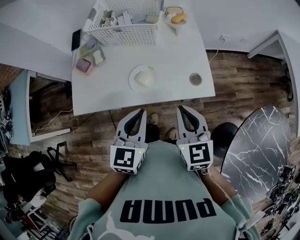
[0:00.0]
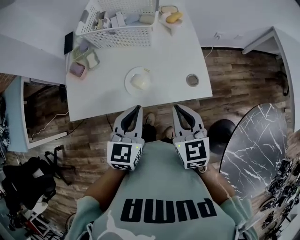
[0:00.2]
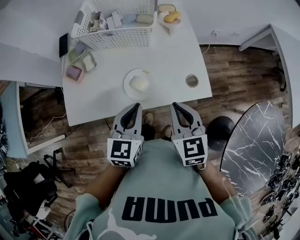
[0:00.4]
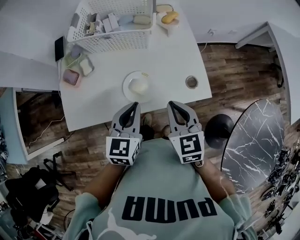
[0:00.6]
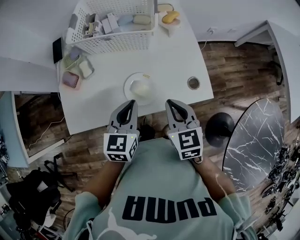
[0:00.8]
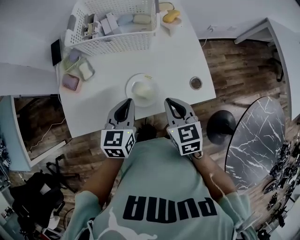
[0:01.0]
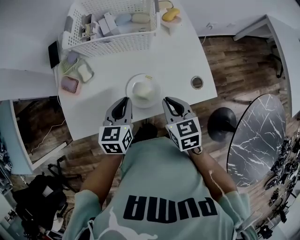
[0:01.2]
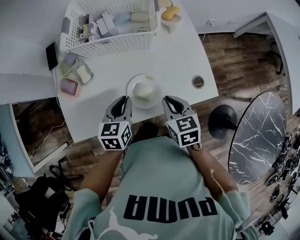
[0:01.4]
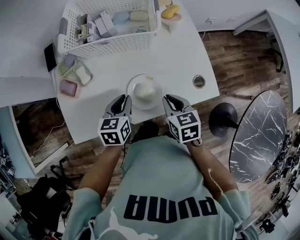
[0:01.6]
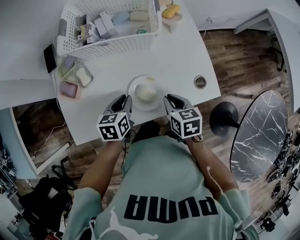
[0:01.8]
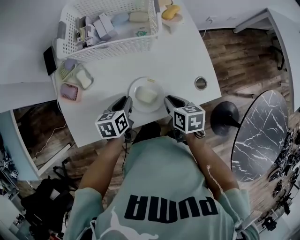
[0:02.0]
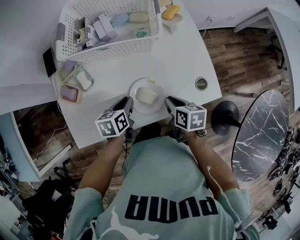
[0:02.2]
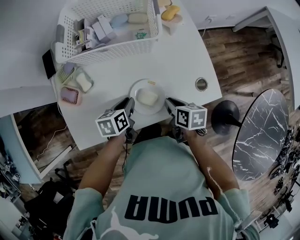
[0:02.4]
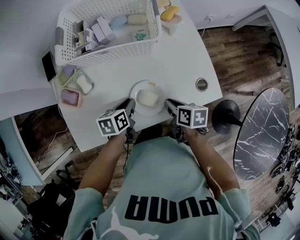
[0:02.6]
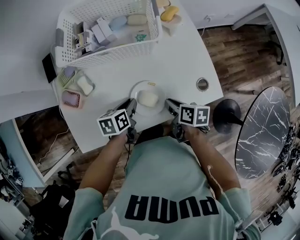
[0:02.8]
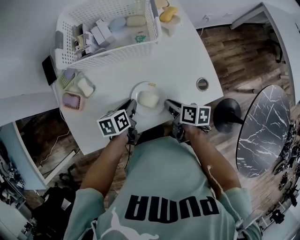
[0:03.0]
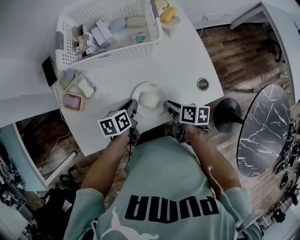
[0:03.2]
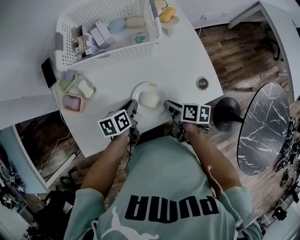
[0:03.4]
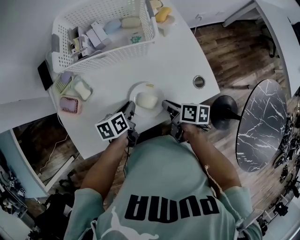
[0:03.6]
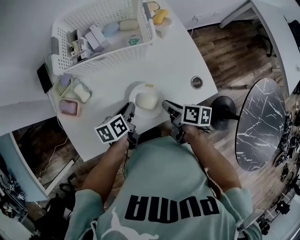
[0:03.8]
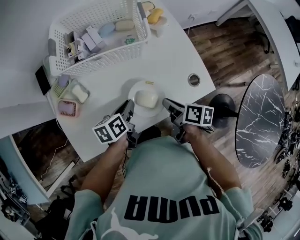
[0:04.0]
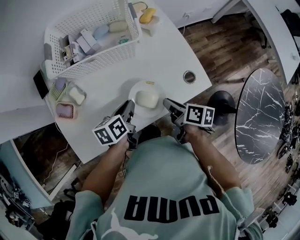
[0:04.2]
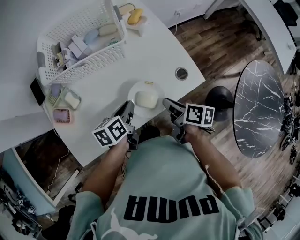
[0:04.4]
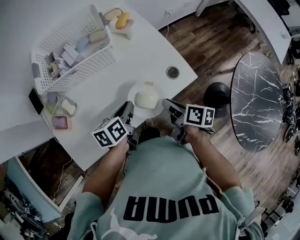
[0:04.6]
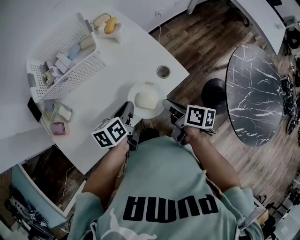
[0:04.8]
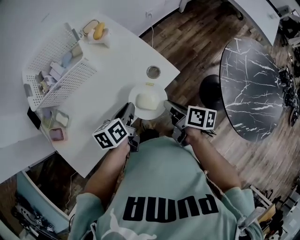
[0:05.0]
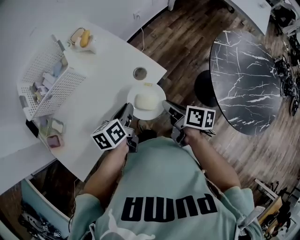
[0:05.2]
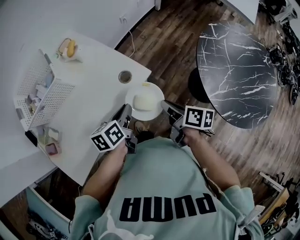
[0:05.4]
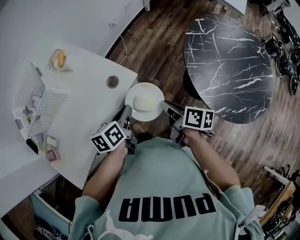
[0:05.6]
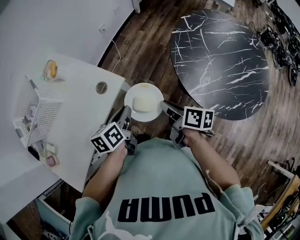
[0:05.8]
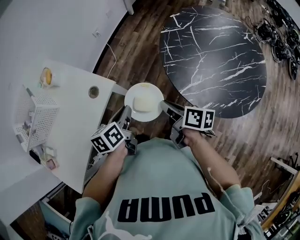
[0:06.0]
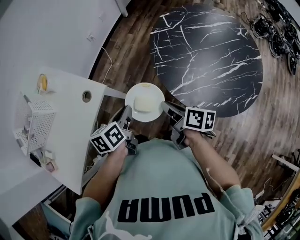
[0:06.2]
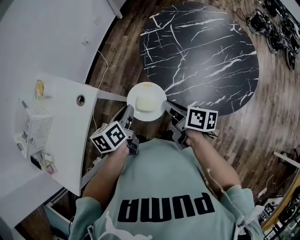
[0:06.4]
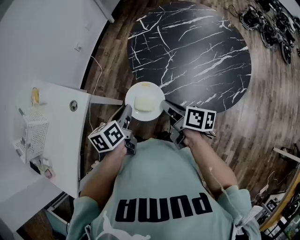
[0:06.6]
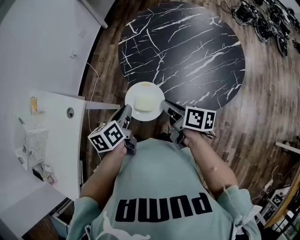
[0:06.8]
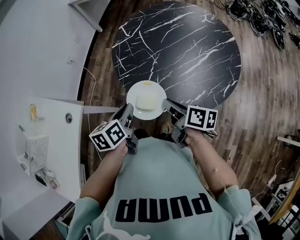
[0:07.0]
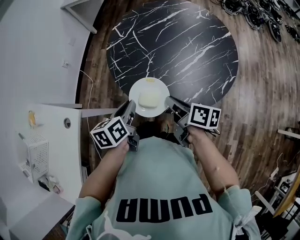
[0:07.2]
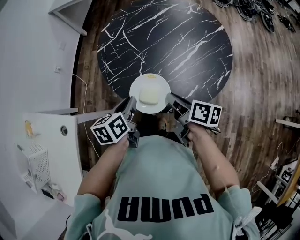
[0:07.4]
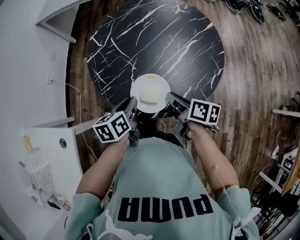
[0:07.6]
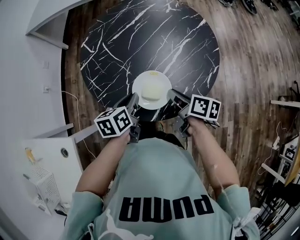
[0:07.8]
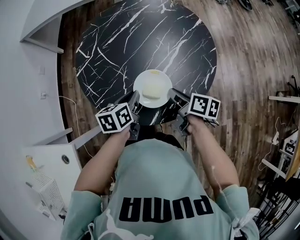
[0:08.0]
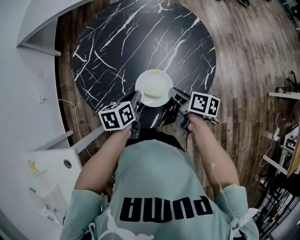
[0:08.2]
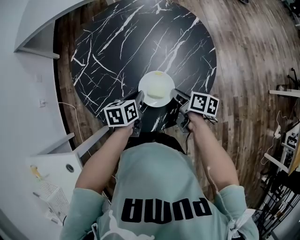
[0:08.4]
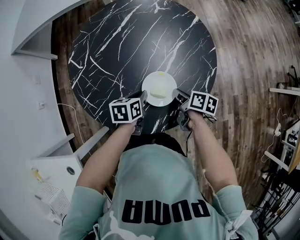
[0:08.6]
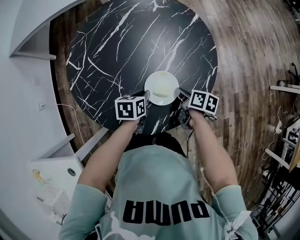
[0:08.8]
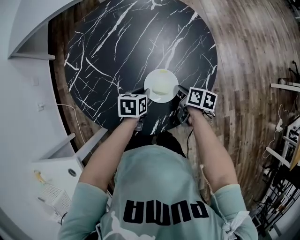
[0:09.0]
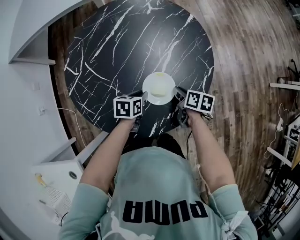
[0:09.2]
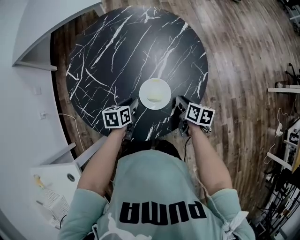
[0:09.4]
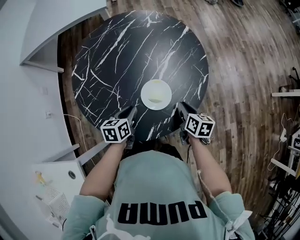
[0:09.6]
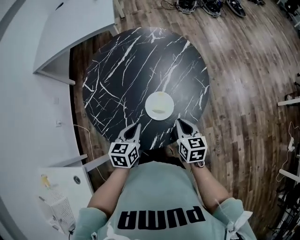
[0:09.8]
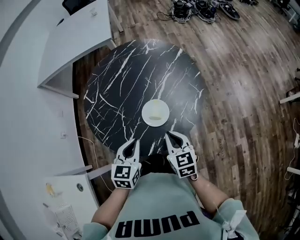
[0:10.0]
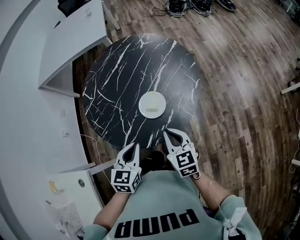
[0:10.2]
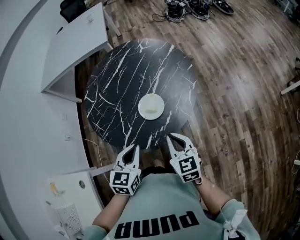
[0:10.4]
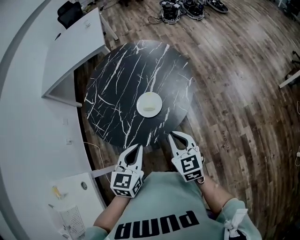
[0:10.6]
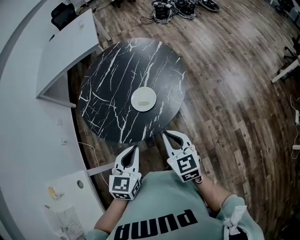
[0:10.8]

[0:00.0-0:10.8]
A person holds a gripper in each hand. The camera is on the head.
0.0 to 1.6 s: The right gripper heads downward, forward and to the left, covering approximately 20 cm, and swivels about 30 degrees. The left gripper travels forward, downward and to the left by about 25 cm, and rotates about 20 degrees.
1.6 to 3.0 s: The grippers both shift downward by approximately 5 cm. The right gripper swivels roughly 40 degrees, while the left gripper turns by some 30 degrees.
3.0 to 4.6 s: The grippers both shift to the right and upward by roughly 10 cm. The right gripper changes its angle by about 20 degrees.
4.6 to 6.2 s: The two grippers travel together, some 40 cm. The right gripper turns by roughly 30 degrees. Meanwhile the left gripper swivels approximately 30 degrees.
6.2 to 7.8 s: The left gripper shifts by some 35 cm, and swivels roughly 40 degrees; the right gripper ends up about 30 cm from where it was, and turns by some 30 degrees.
7.8 to 9.2 s: The right gripper moves downward, to the right and forward, about 15 cm. Meanwhile the left gripper is displaced downward, forward and to the right by approximately 20 cm, and changes its angle by some 30 degrees.
9.2 to 10.8 s: Both grippers travel together backward and upward, roughly 35 cm. The right gripper twists some 50 degrees counterclockwise, seen from behind, while the left gripper turns by roughly 40 degrees, and closes up.

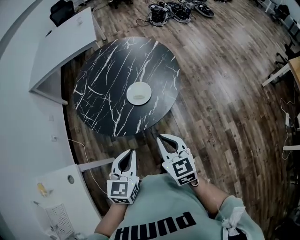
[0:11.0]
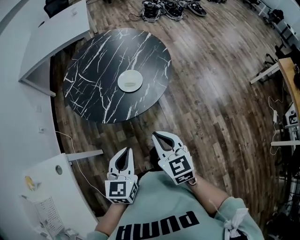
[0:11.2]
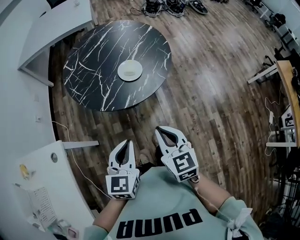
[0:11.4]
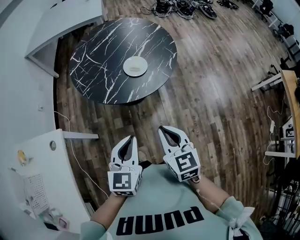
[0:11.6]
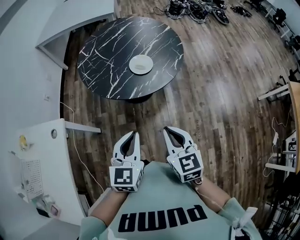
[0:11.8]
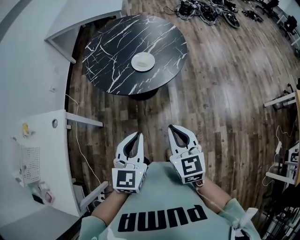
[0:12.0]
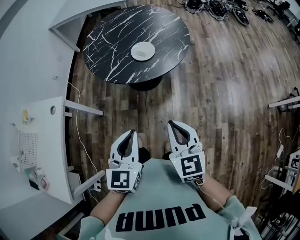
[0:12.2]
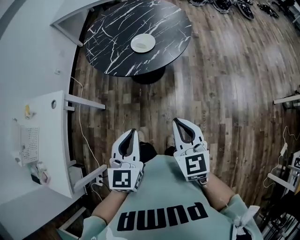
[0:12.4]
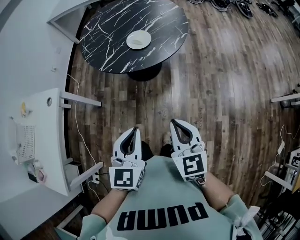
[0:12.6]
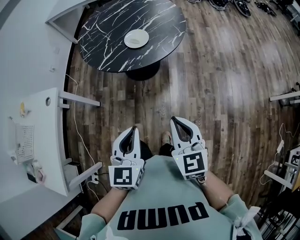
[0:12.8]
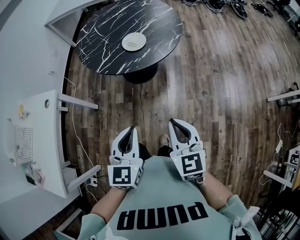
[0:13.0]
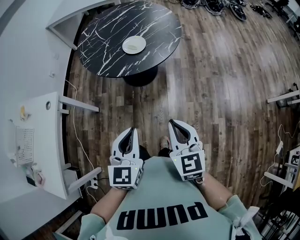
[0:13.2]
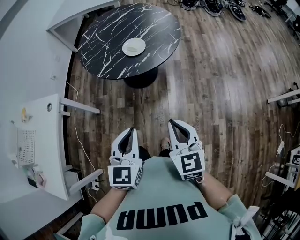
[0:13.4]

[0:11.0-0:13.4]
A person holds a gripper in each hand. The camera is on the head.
11.0 to 12.2 s: Both grippers travel together backward and to the right, approximately 20 cm. The left gripper turns by roughly 20 degrees.
12.2 to 13.4 s: The right gripper is displaced to the right by about 5 cm. Meanwhile the left gripper ends up about 5 cm from where it was.

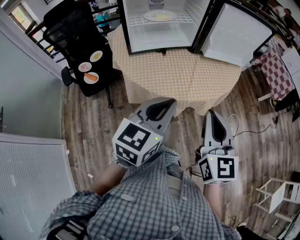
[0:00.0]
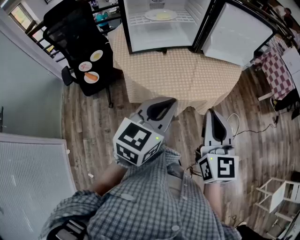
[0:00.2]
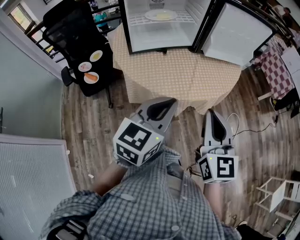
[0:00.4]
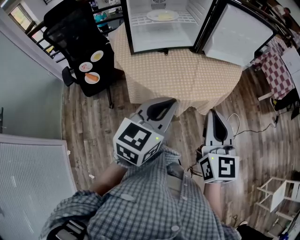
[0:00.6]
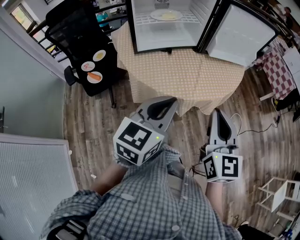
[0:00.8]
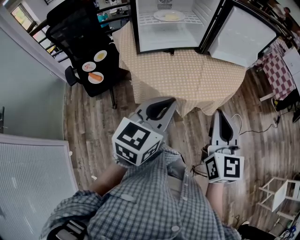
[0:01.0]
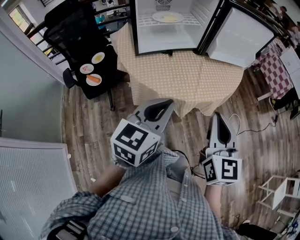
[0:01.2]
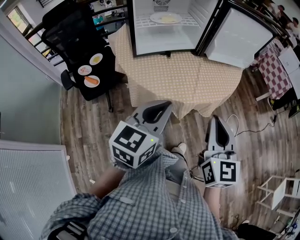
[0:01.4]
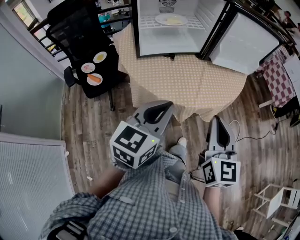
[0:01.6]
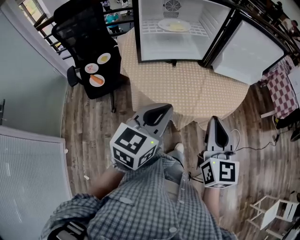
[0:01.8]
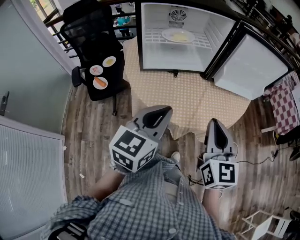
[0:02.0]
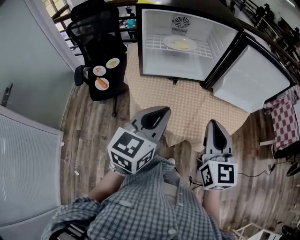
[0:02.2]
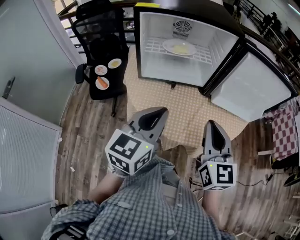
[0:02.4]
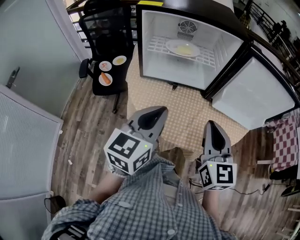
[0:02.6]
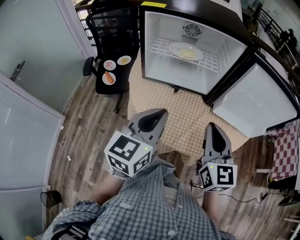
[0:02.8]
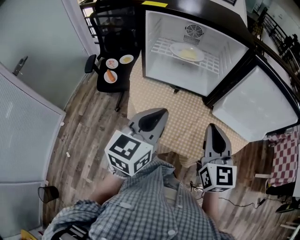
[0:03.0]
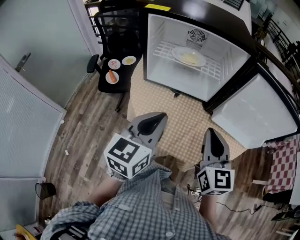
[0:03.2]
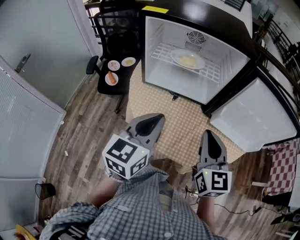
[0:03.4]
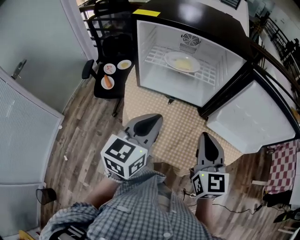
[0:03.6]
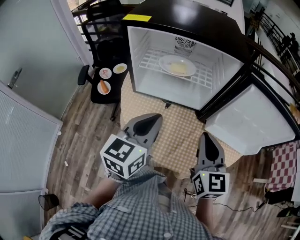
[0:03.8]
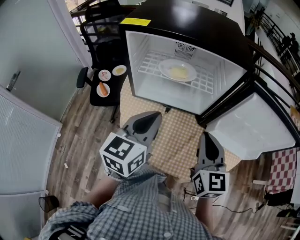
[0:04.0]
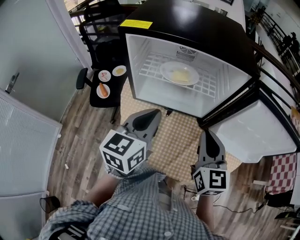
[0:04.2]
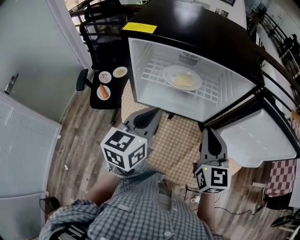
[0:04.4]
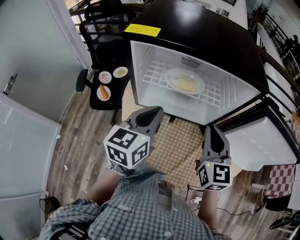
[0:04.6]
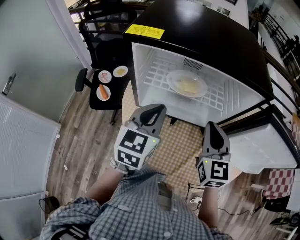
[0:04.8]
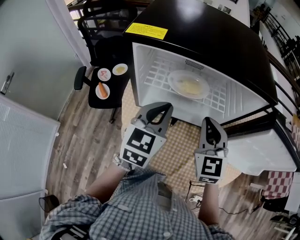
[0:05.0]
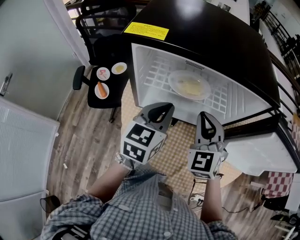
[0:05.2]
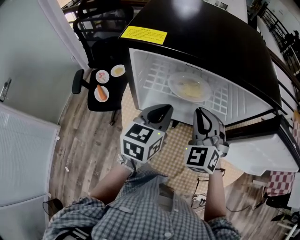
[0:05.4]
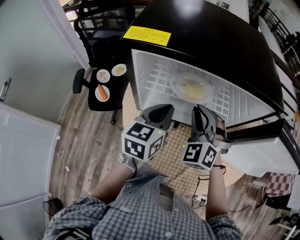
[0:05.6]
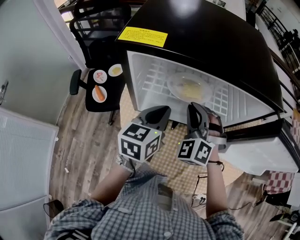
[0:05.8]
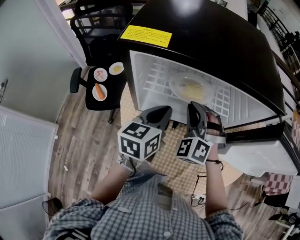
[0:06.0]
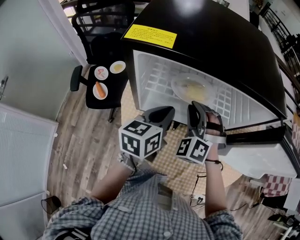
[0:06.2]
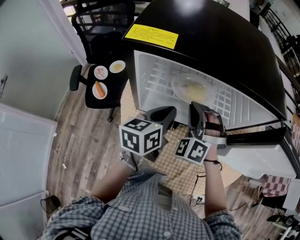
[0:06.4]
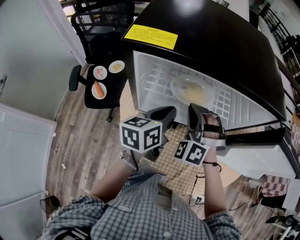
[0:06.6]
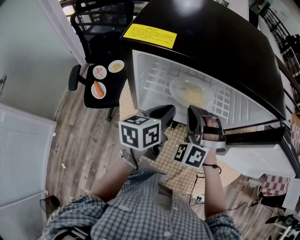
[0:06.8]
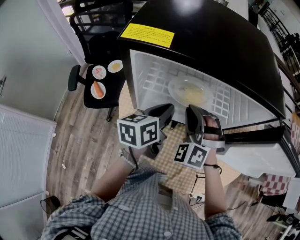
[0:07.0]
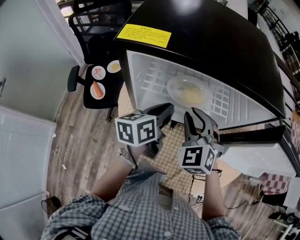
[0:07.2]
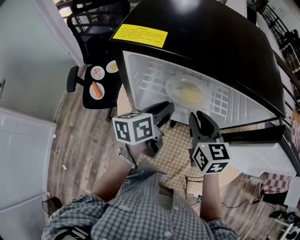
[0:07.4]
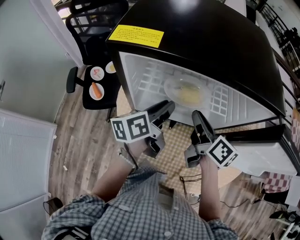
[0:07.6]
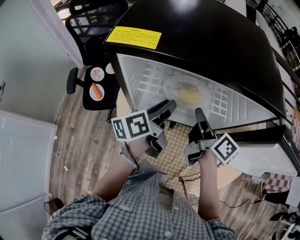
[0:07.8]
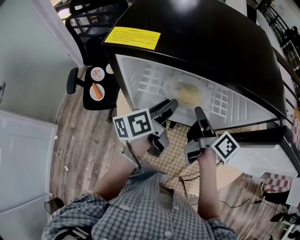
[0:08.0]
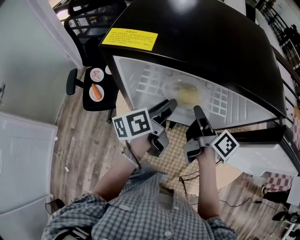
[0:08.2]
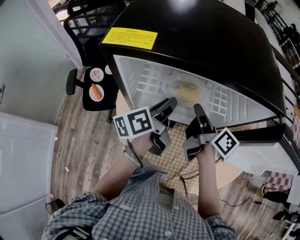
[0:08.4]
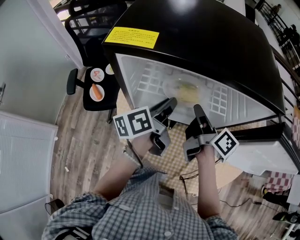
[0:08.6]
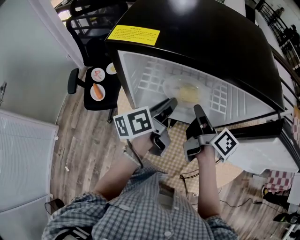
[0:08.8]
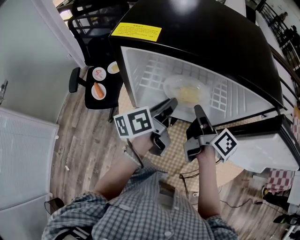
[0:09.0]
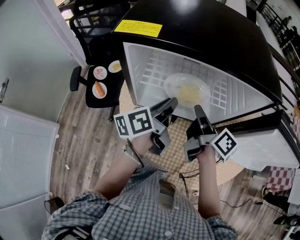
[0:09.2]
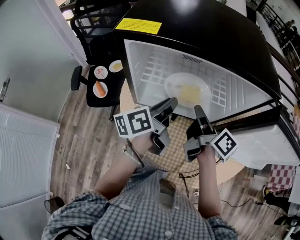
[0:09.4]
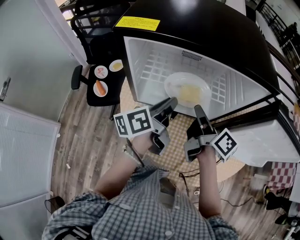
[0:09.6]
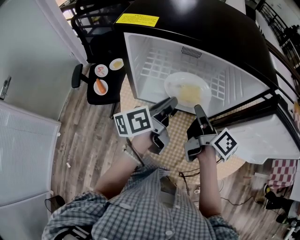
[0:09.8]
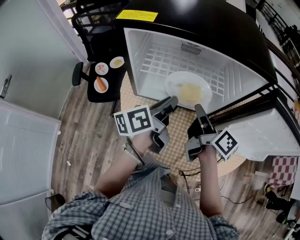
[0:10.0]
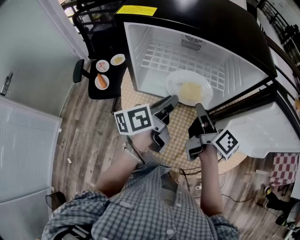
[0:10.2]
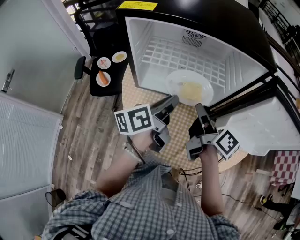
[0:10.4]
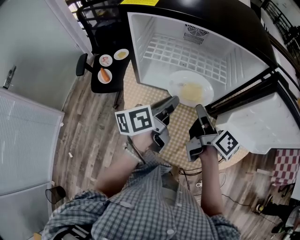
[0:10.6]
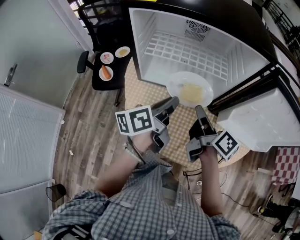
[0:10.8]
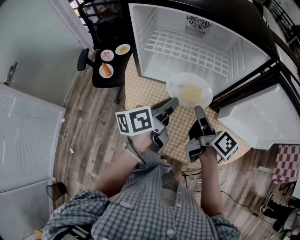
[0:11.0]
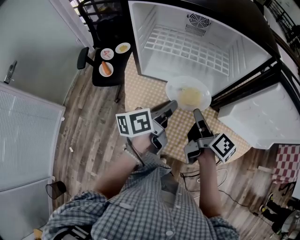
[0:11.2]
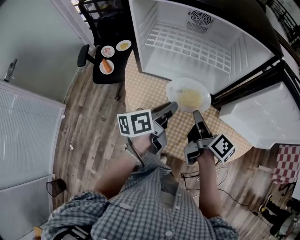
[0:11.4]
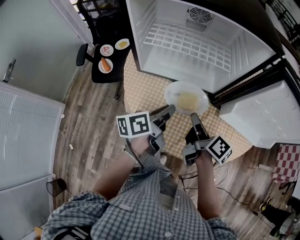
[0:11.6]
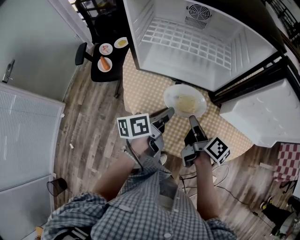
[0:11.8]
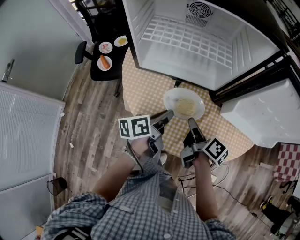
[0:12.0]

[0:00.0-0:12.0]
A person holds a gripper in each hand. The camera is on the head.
0.0 to 1.6 s: The left gripper shifts roughly 5 cm to the left.
1.6 to 3.0 s: The right gripper changes place by about 25 cm, and turns by approximately 30 degrees. Meanwhile the left gripper ends up roughly 15 cm from where it was, and rotates some 30 degrees.
3.0 to 4.4 s: The grippers both shift forward by roughly 15 cm.
4.4 to 6.0 s: The right gripper moves forward, to the left and downward, roughly 20 cm, and rolls counterclockwise, seen from behind, by roughly 60 degrees, while the left gripper travels forward and downward by some 10 cm.
6.0 to 7.6 s: The right gripper goes about 5 cm to the right, and rolls clockwise, seen from behind, by some 110 degrees, while the left gripper swivels approximately 30 degrees, and opens up.
7.6 to 9.0 s: The right gripper rotates approximately 20 degrees.
9.0 to 10.4 s: Both grippers travel together backward, roughly 10 cm.
10.4 to 12.0 s: The two grippers go some 15 cm downward and backward.
